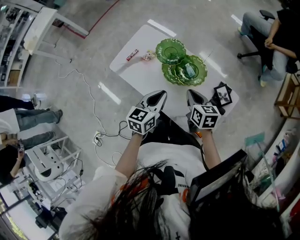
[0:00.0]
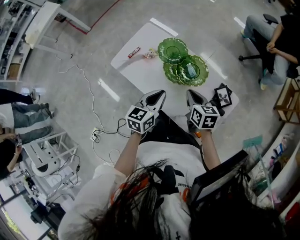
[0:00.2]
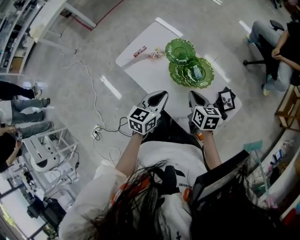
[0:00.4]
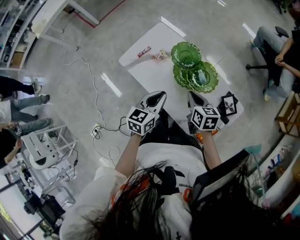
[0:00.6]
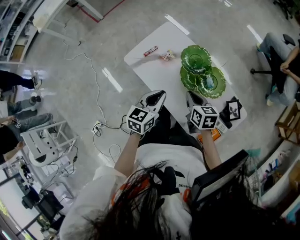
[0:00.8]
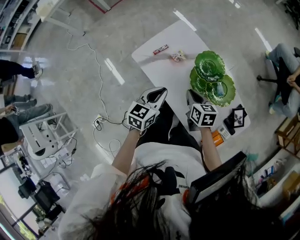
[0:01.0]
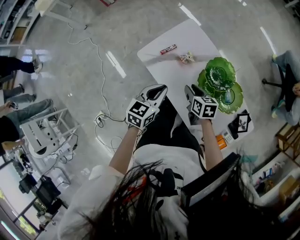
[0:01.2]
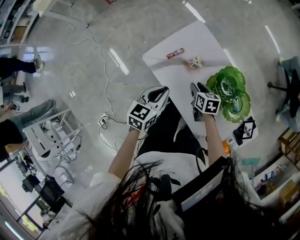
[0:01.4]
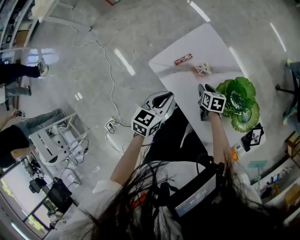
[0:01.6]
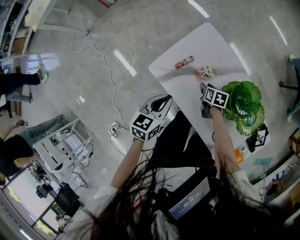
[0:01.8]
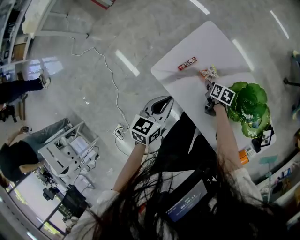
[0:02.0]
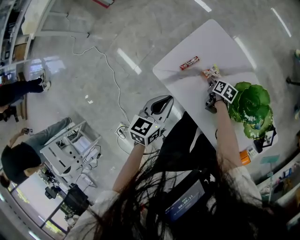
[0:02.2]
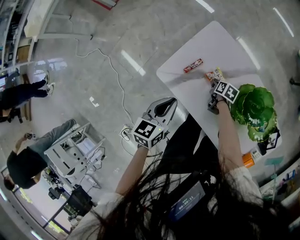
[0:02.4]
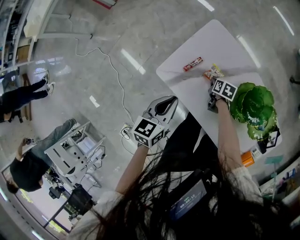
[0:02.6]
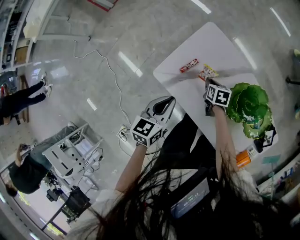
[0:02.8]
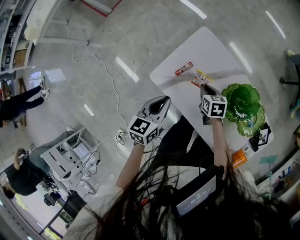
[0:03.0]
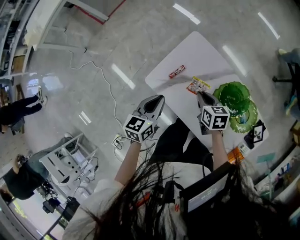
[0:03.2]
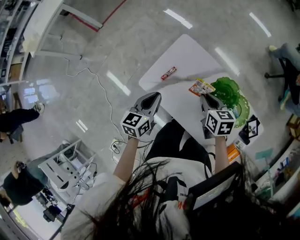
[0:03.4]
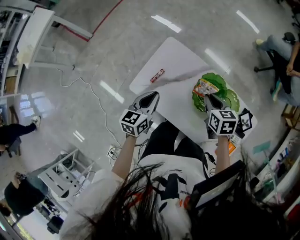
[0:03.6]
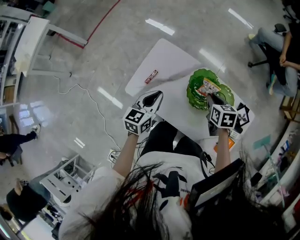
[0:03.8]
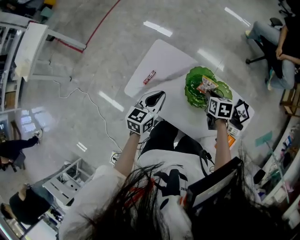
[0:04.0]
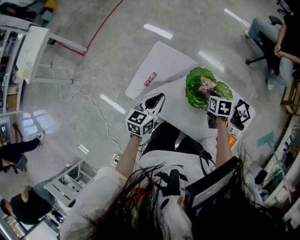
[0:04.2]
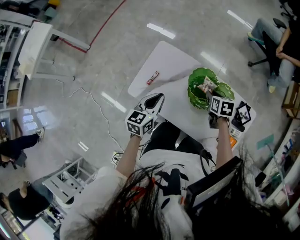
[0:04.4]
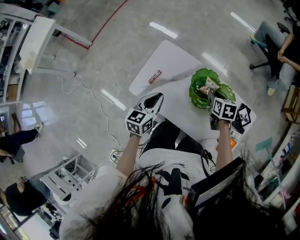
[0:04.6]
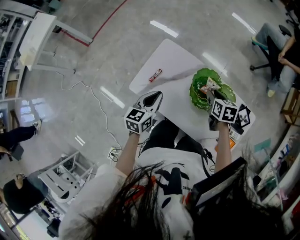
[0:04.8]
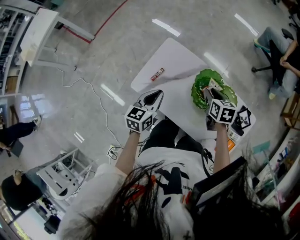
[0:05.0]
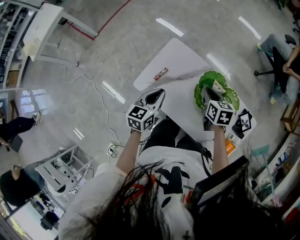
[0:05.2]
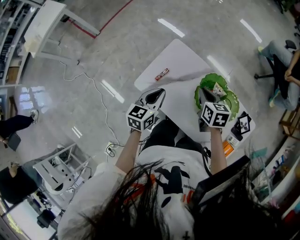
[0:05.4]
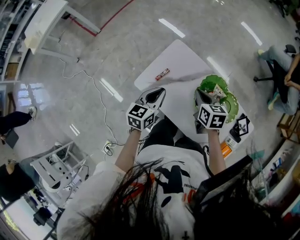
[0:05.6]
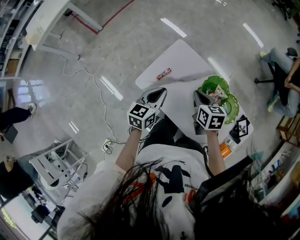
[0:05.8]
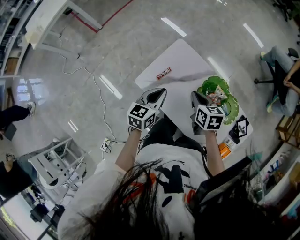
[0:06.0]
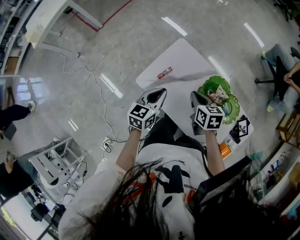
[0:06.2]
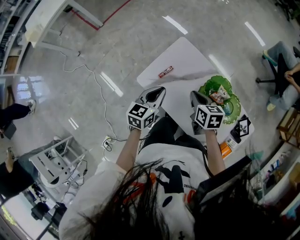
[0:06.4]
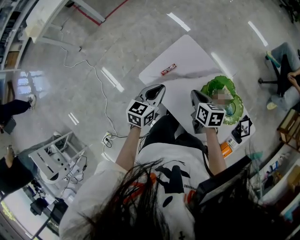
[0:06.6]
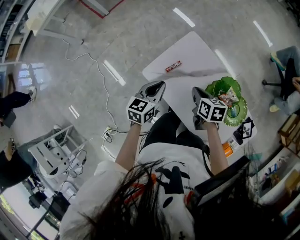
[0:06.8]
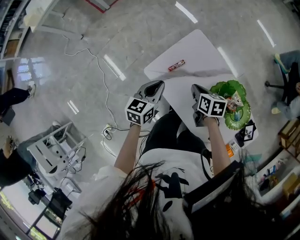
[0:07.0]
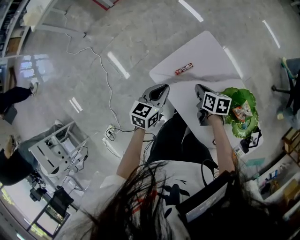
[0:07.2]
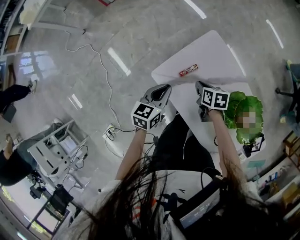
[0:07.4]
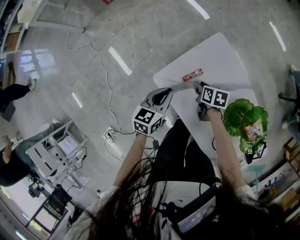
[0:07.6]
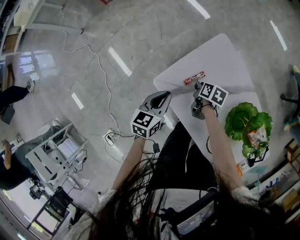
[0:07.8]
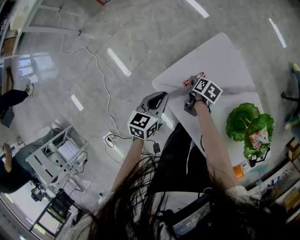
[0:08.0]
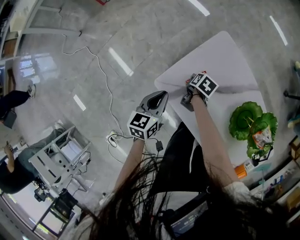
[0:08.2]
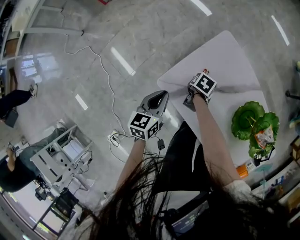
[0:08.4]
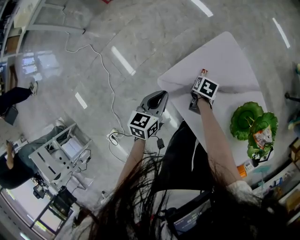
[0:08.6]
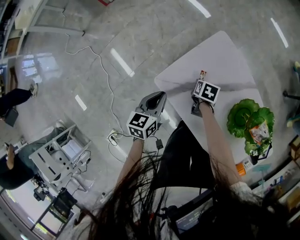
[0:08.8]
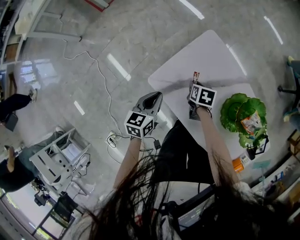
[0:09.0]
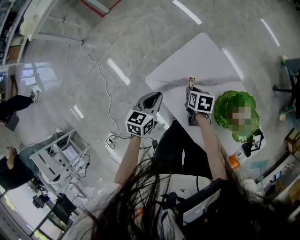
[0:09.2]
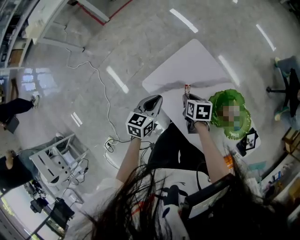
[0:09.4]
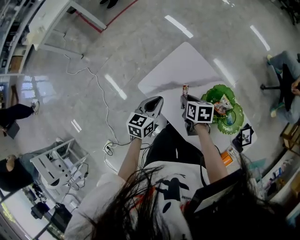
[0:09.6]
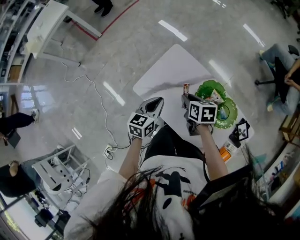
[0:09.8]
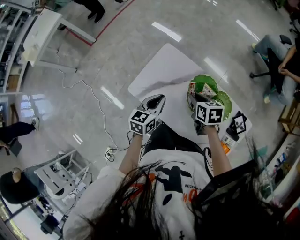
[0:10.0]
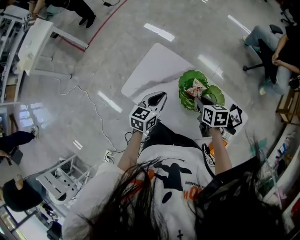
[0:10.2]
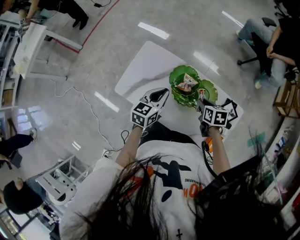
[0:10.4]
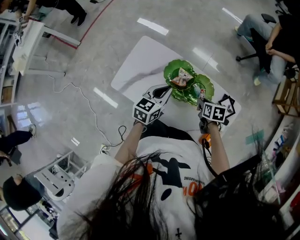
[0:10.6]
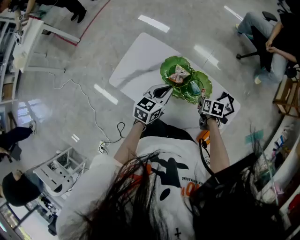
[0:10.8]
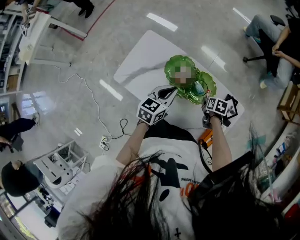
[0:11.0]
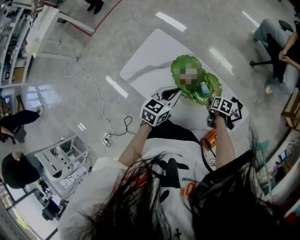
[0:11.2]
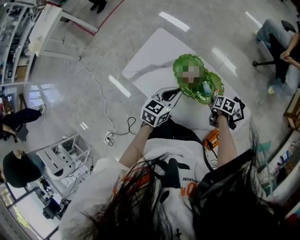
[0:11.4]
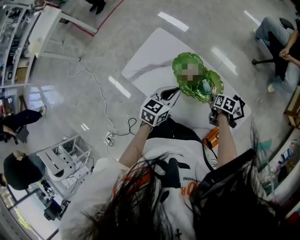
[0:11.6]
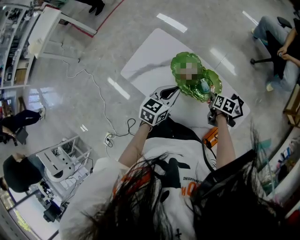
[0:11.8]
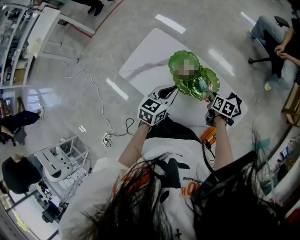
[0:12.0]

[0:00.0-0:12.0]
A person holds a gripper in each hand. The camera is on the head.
0.0 to 1.6 s: The left gripper shifts some 30 cm to the left and forward. Meanwhile the right gripper is displaced downward, to the left and forward by some 40 cm, turns by roughly 20 degrees, and opens up.
1.6 to 3.0 s: The left gripper is displaced forward by some 5 cm; the right gripper travels downward and back again, roughly 10 cm each way.
3.0 to 4.4 s: The left gripper heads to the right and upward, covering about 15 cm. Meanwhile the right gripper heads to the right and upward, covering about 25 cm, and swivels about 20 degrees.
4.4 to 6.0 s: The right gripper travels to the left by roughly 20 cm, turns by roughly 20 degrees, and closes up. The left gripper is displaced to the left by about 5 cm.
6.0 to 7.6 s: The left gripper heads downward and to the left, covering approximately 20 cm, while the right gripper heads downward, to the left and forward, covering approximately 30 cm, swivels about 20 degrees, and opens up.
7.6 to 9.0 s: The right gripper moves about 10 cm downward and comes back.
9.0 to 10.4 s: The left gripper travels to the right and upward by approximately 35 cm, and turns by approximately 30 degrees. Meanwhile the right gripper moves to the right, upward and backward, about 40 cm.
10.4 to 12.0 s: The left gripper goes roughly 10 cm to the right and backward. The right gripper travels to the right and downward by some 10 cm.

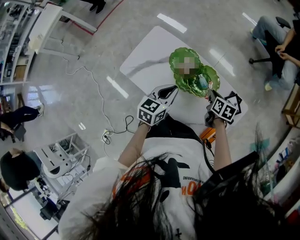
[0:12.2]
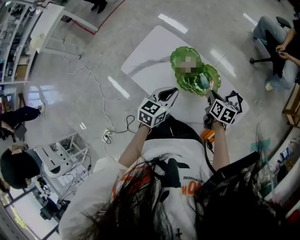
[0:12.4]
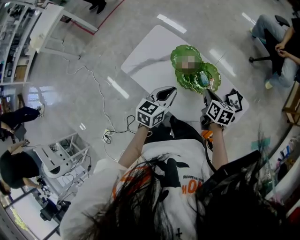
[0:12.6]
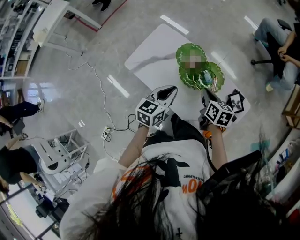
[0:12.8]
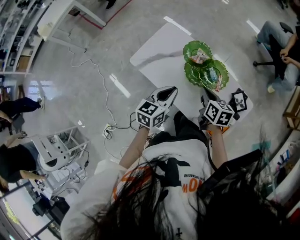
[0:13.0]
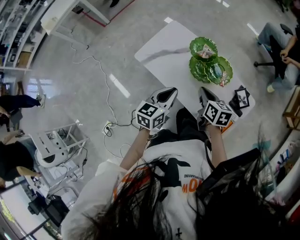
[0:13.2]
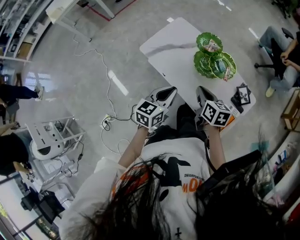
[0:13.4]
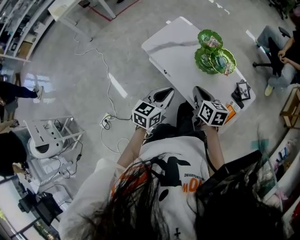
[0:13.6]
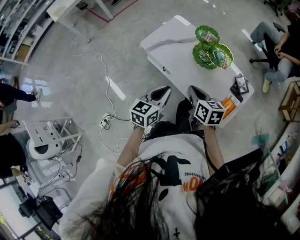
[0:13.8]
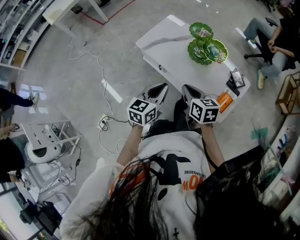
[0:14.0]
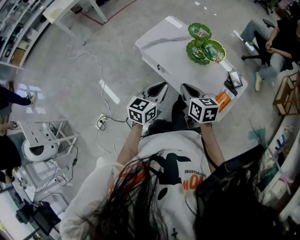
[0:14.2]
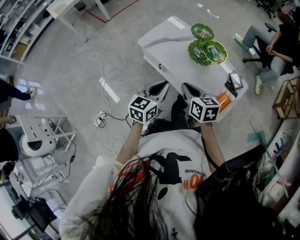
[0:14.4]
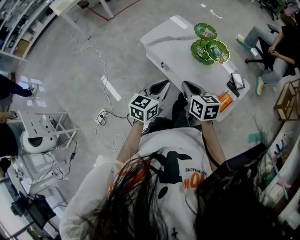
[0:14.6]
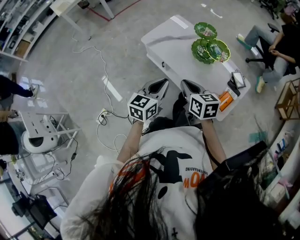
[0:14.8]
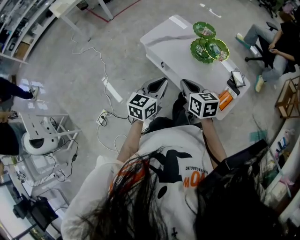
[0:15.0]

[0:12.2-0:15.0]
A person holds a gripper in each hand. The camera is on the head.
12.2 to 13.6 s: The left gripper travels backward and to the left by about 30 cm, while the right gripper travels backward, to the left and upward by some 35 cm, and swivels some 20 degrees.
13.6 to 15.0 s: The right gripper travels backward and to the left by some 10 cm. The left gripper moves backward, roughly 10 cm.

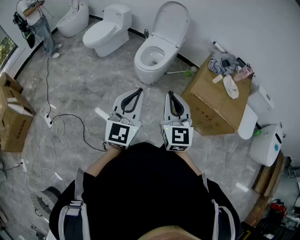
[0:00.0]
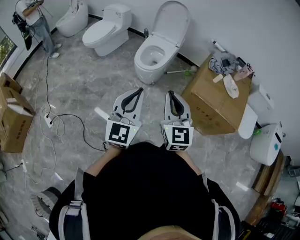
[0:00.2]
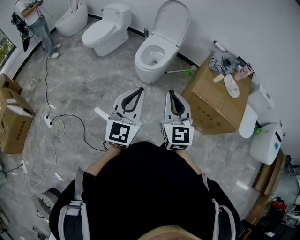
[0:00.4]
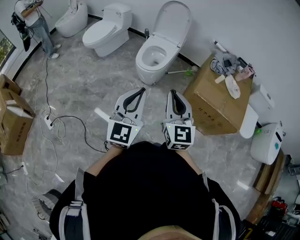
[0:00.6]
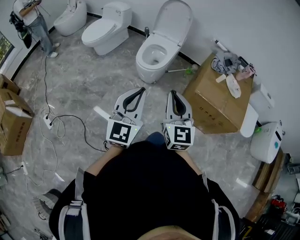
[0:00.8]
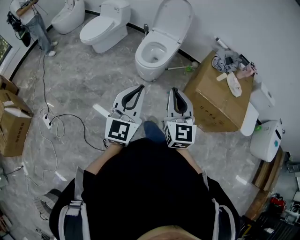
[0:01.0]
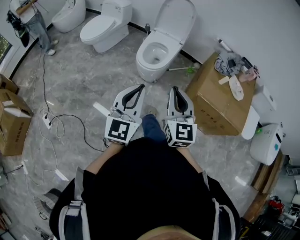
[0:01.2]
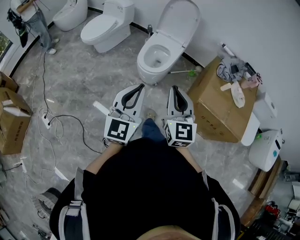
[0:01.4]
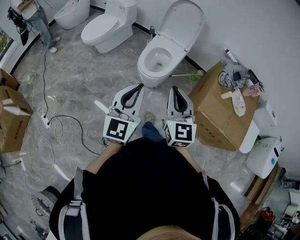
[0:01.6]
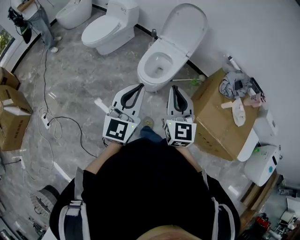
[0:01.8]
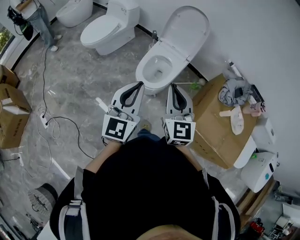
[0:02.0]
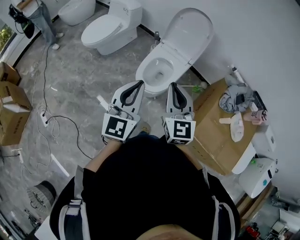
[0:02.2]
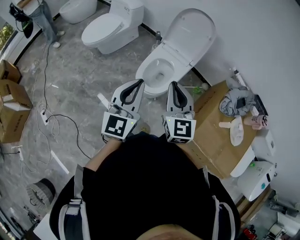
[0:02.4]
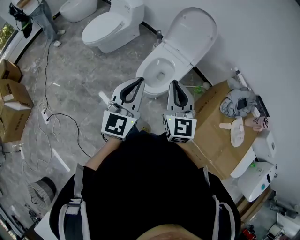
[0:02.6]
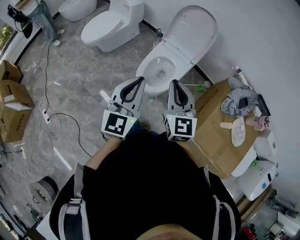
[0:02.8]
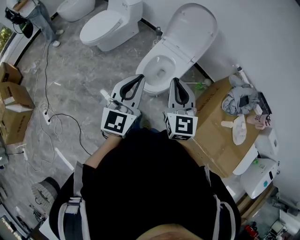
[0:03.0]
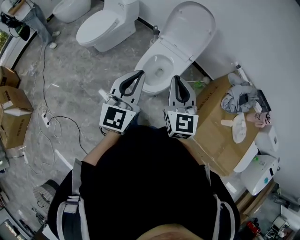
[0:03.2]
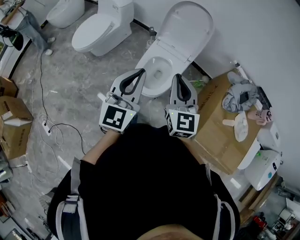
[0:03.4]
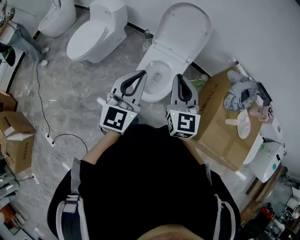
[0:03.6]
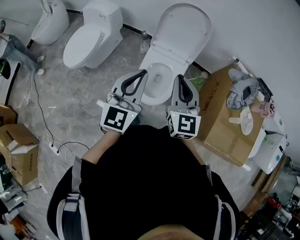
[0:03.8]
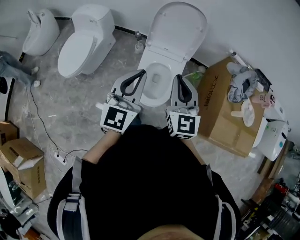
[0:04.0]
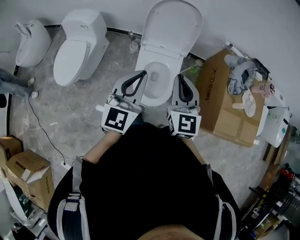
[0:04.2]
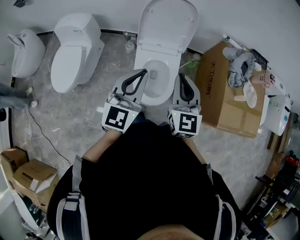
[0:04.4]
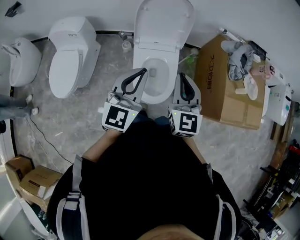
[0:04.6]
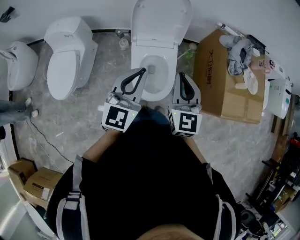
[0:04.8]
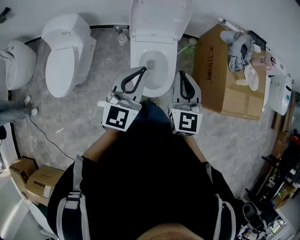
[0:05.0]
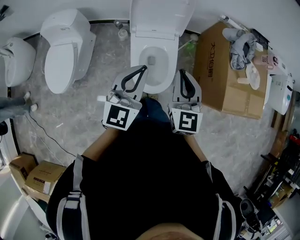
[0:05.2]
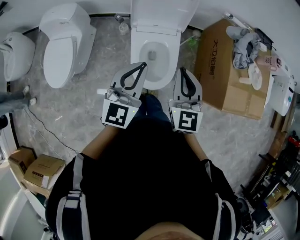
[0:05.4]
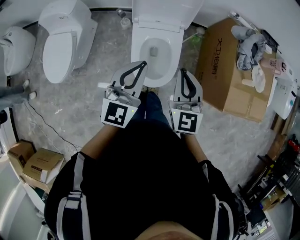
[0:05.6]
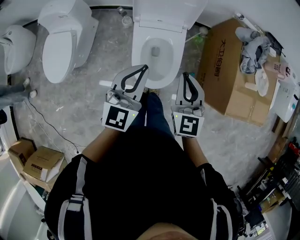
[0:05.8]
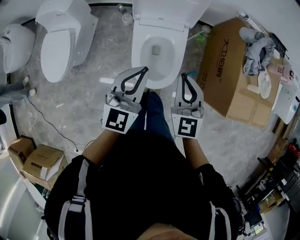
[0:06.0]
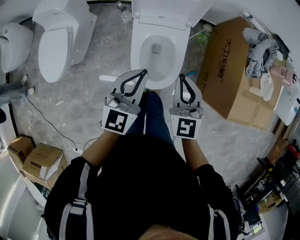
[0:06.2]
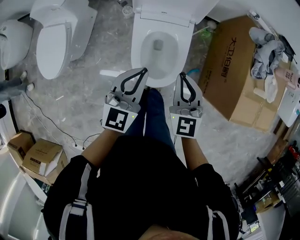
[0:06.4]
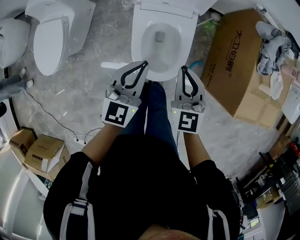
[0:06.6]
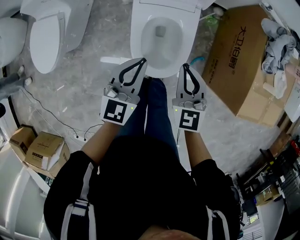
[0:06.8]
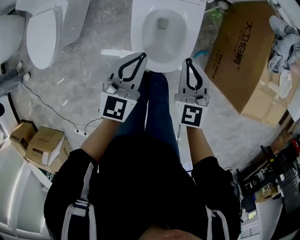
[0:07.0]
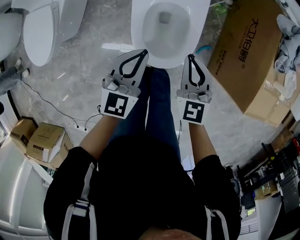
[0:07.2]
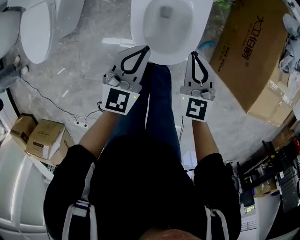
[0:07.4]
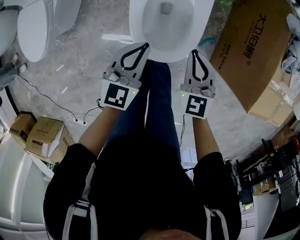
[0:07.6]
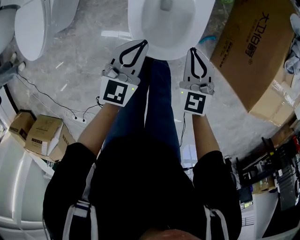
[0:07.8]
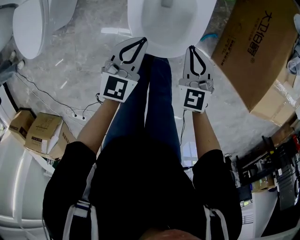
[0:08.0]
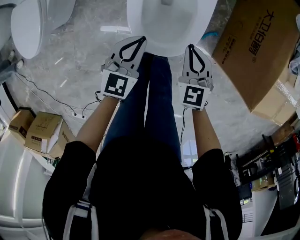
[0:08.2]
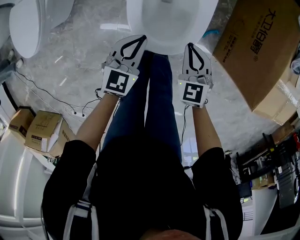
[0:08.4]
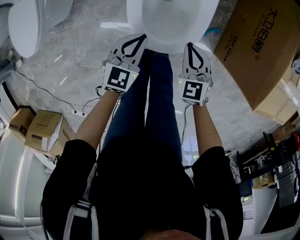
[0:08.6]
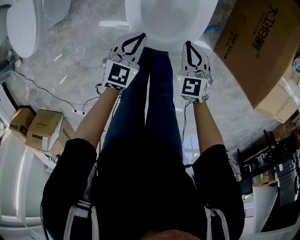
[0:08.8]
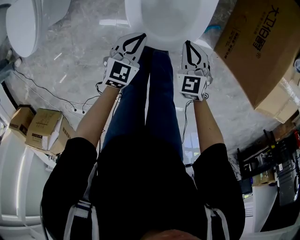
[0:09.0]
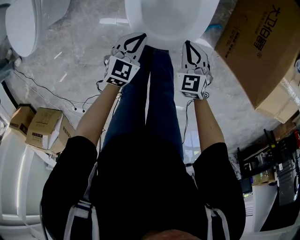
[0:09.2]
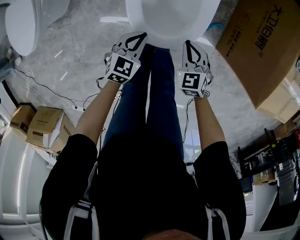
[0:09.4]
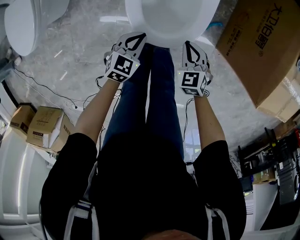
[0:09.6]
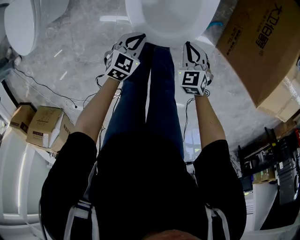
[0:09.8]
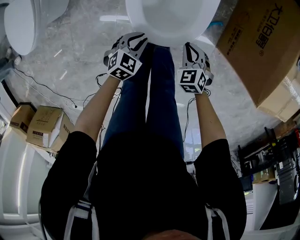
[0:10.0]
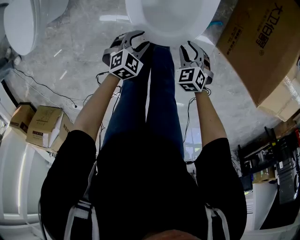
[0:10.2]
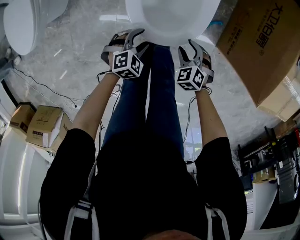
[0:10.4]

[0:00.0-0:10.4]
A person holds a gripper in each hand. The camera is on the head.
0.0 to 1.4 s: The right gripper goes roughly 15 cm forward; the left gripper is displaced forward and to the left by roughly 15 cm.
1.4 to 3.0 s: Both grippers move forward, roughly 30 cm.
3.0 to 4.4 s: The right gripper shifts by about 20 cm, and rotates roughly 30 degrees. The left gripper changes place by roughly 25 cm, and rotates roughly 30 degrees.
4.4 to 6.0 s: The right gripper is displaced downward by approximately 15 cm. The left gripper travels downward and forward by about 10 cm.
6.0 to 7.4 s: Both grippers move downward, about 20 cm.
7.4 to 9.0 s: Both grippers travel together downward, approximately 15 cm. The left gripper changes its angle by about 20 degrees.
9.0 to 10.4 s: The two grippers go about 10 cm downward and backward. The left gripper turns by some 40 degrees, and opens its fingers. The right gripper changes its angle by some 20 degrees, and opens.
